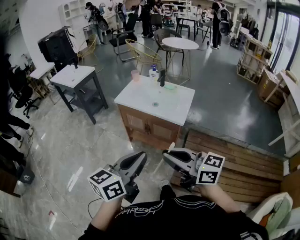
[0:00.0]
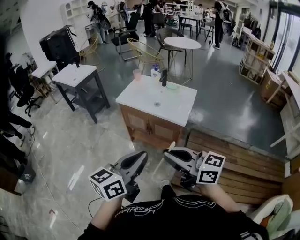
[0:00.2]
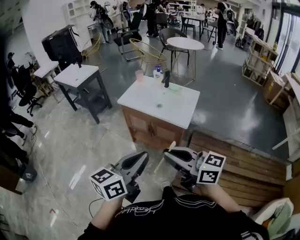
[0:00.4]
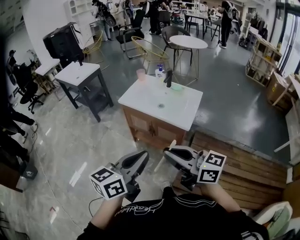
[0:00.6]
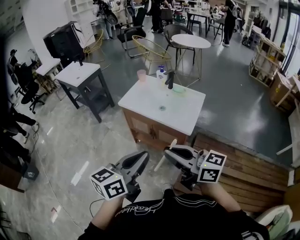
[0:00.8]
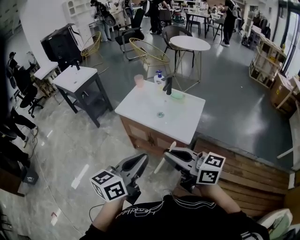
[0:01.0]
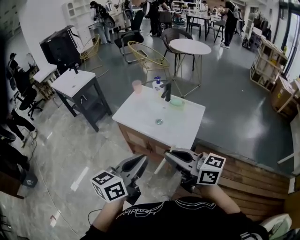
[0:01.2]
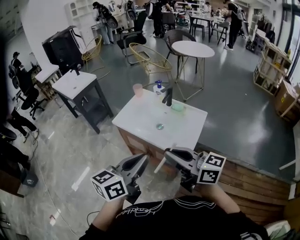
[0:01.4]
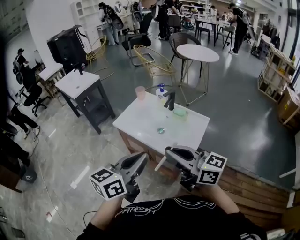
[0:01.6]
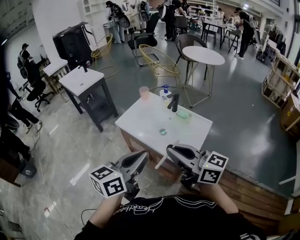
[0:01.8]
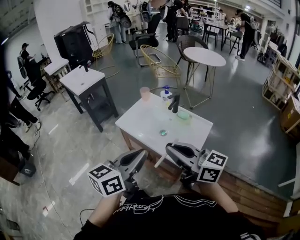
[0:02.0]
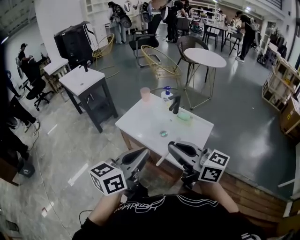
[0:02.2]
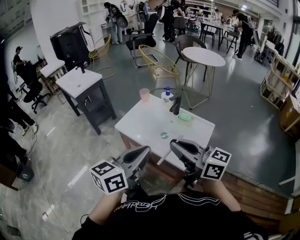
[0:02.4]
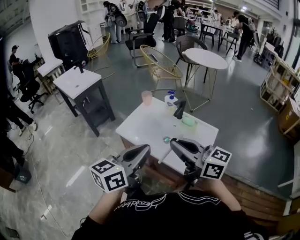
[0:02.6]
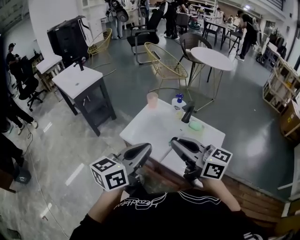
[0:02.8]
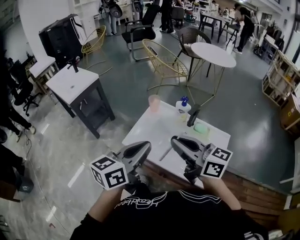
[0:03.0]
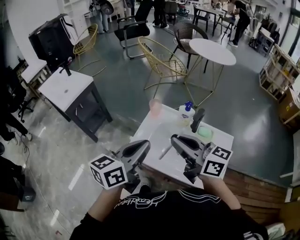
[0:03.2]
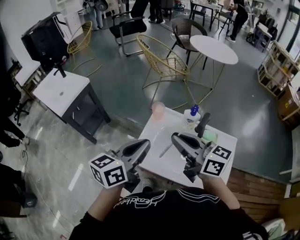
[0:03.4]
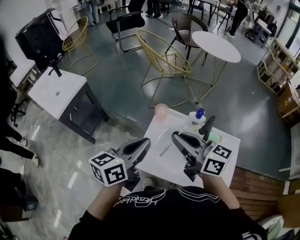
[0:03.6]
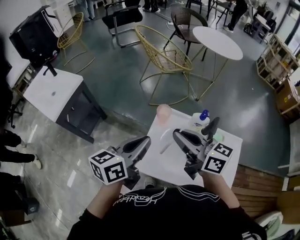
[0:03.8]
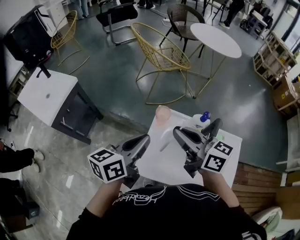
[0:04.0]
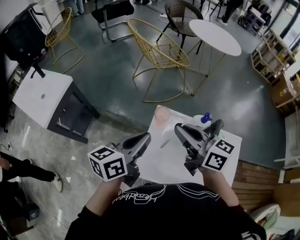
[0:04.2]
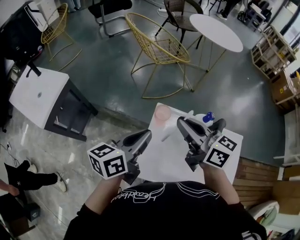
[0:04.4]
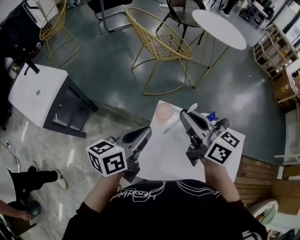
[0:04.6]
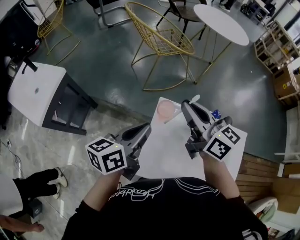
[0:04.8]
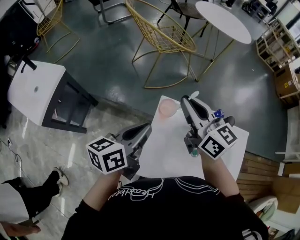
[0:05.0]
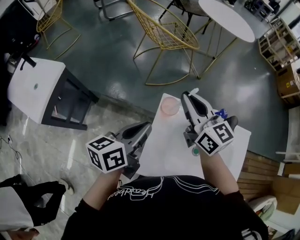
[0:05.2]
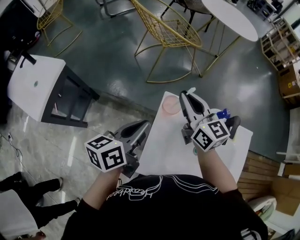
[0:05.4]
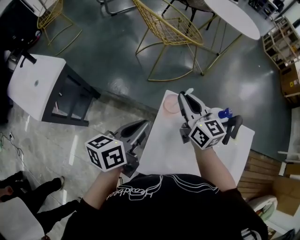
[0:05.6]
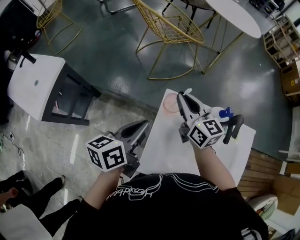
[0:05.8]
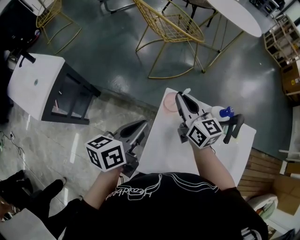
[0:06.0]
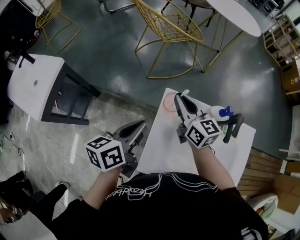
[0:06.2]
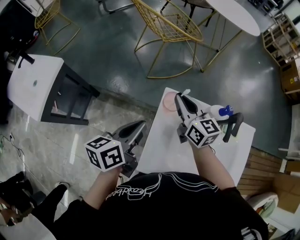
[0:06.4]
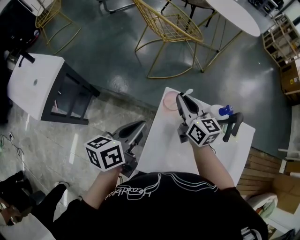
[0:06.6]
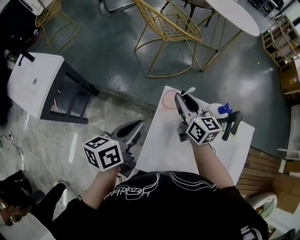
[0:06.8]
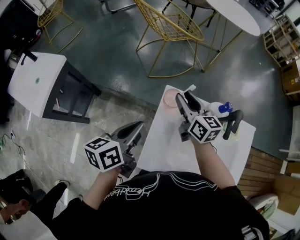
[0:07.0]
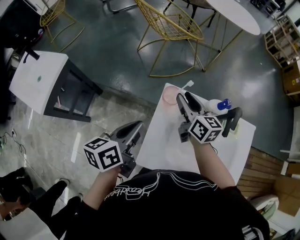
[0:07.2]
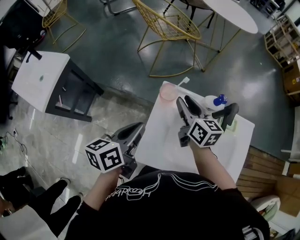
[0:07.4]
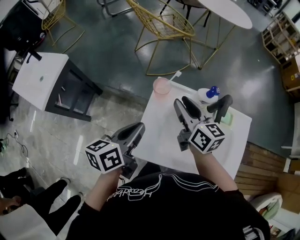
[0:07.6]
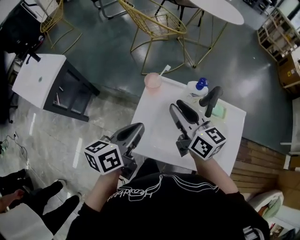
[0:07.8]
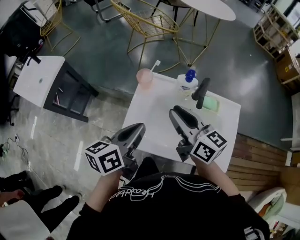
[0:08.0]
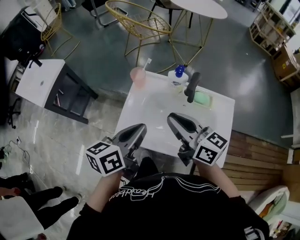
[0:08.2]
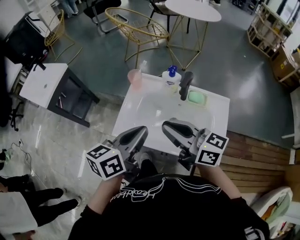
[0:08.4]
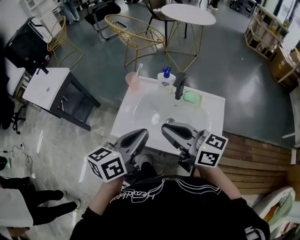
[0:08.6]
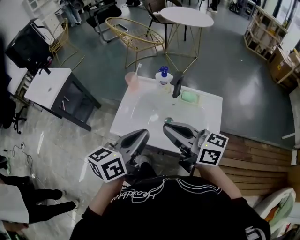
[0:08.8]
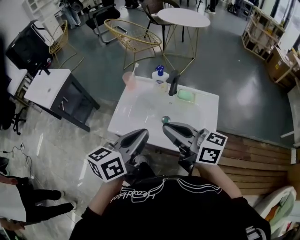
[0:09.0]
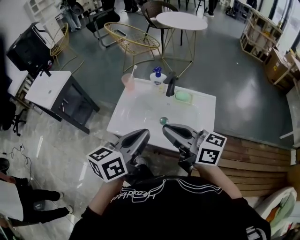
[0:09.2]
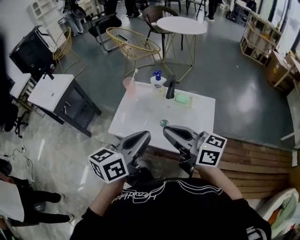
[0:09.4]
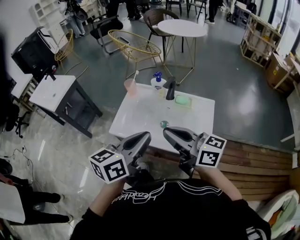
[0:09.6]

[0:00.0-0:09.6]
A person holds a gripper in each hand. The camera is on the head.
0:00.0 to 0:01.6: Both grippers travel together forward, some 25 cm.
0:01.6 to 0:03.2: The grippers both shift forward by approximately 30 cm.
0:03.2 to 0:04.8: The left gripper heads forward and downward, covering roughly 25 cm. Meanwhile the right gripper is displaced forward by some 25 cm, and turns by roughly 20 degrees.
0:04.8 to 0:06.4: The left gripper shifts approximately 5 cm downward. The right gripper heads downward, covering roughly 15 cm.
0:06.4 to 0:08.0: Both grippers move backward, to the right and upward, approximately 20 cm.
0:08.0 to 0:09.6: The left gripper travels backward, to the right and upward by approximately 25 cm; the right gripper moves backward, approximately 25 cm, and swivels some 20 degrees.

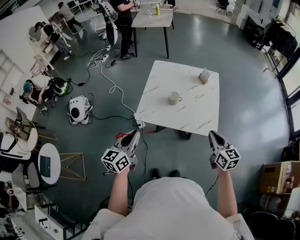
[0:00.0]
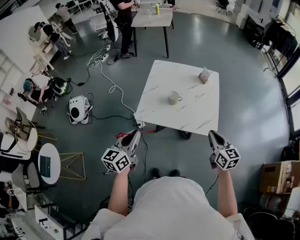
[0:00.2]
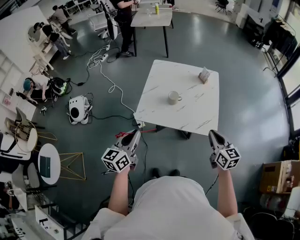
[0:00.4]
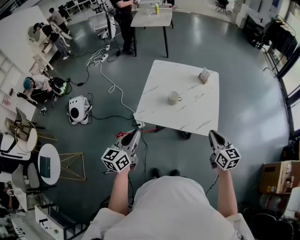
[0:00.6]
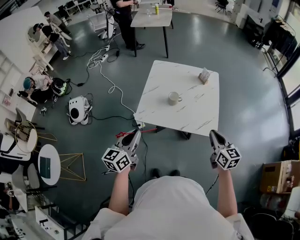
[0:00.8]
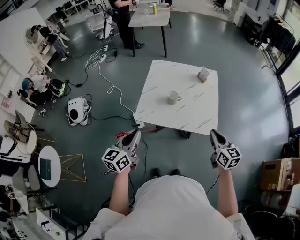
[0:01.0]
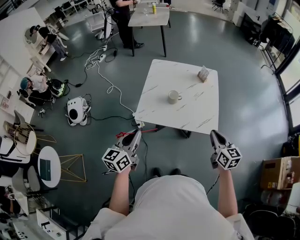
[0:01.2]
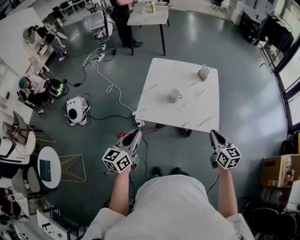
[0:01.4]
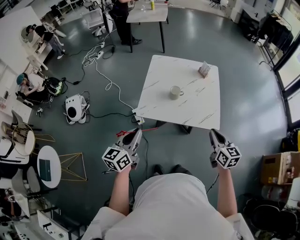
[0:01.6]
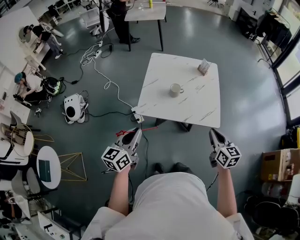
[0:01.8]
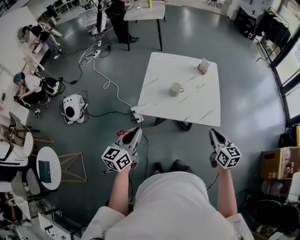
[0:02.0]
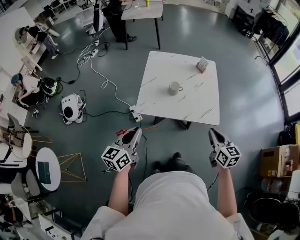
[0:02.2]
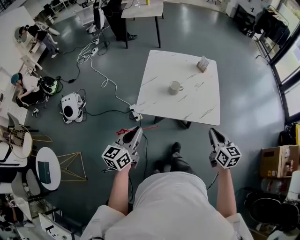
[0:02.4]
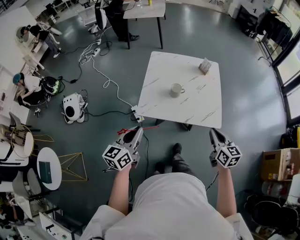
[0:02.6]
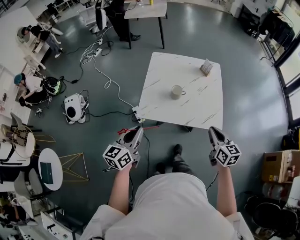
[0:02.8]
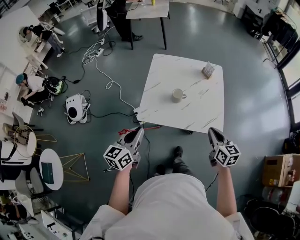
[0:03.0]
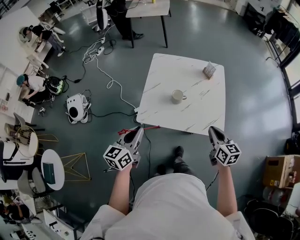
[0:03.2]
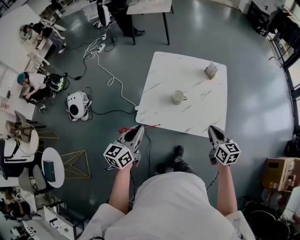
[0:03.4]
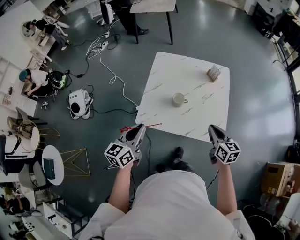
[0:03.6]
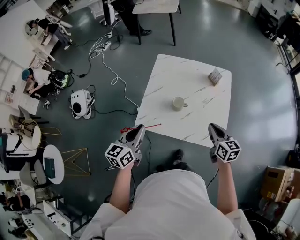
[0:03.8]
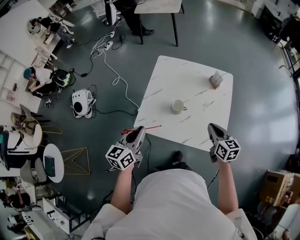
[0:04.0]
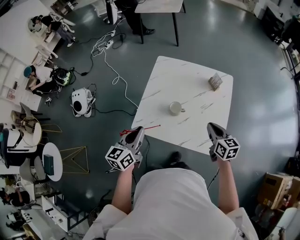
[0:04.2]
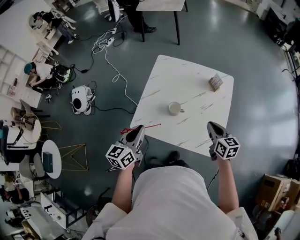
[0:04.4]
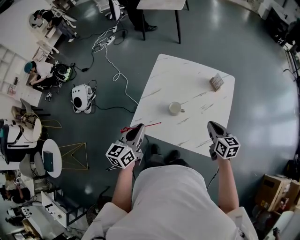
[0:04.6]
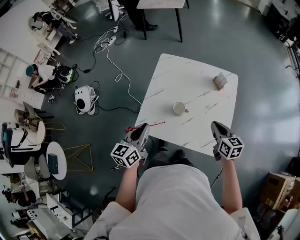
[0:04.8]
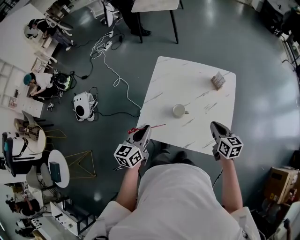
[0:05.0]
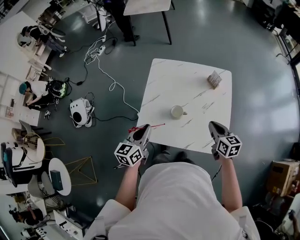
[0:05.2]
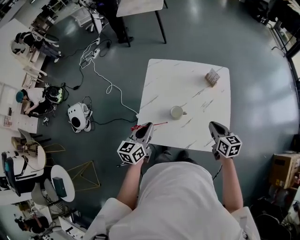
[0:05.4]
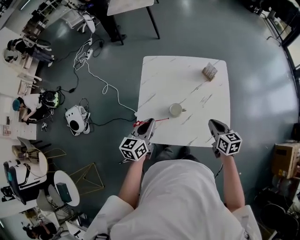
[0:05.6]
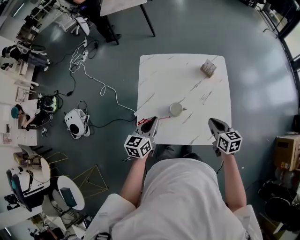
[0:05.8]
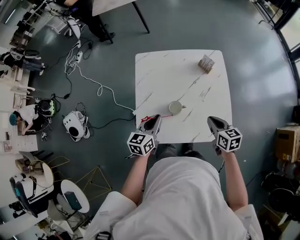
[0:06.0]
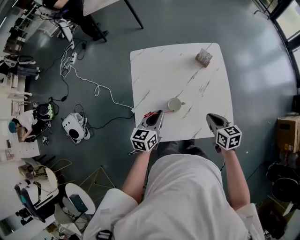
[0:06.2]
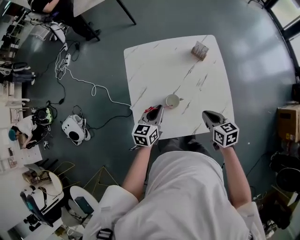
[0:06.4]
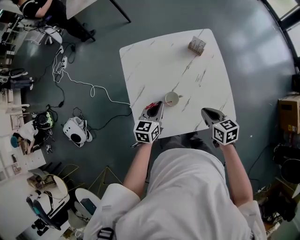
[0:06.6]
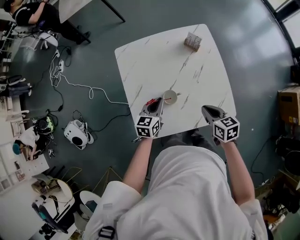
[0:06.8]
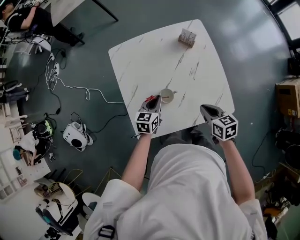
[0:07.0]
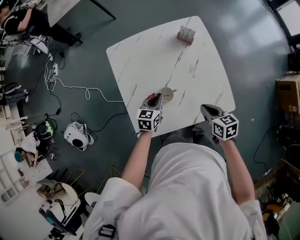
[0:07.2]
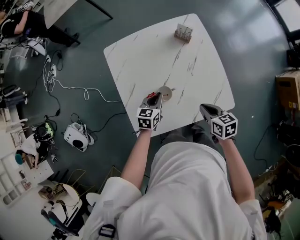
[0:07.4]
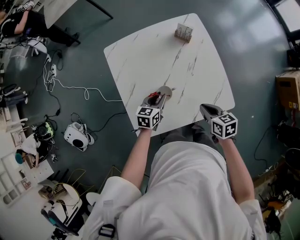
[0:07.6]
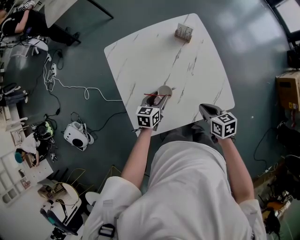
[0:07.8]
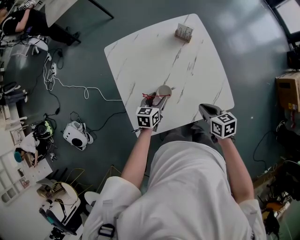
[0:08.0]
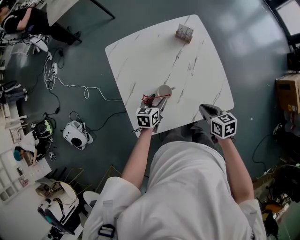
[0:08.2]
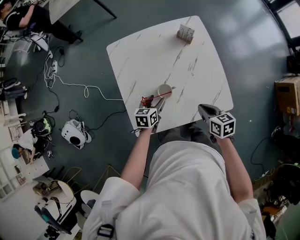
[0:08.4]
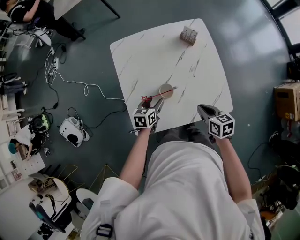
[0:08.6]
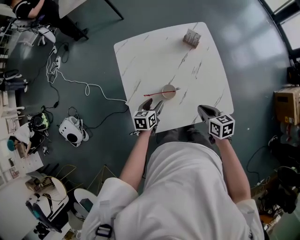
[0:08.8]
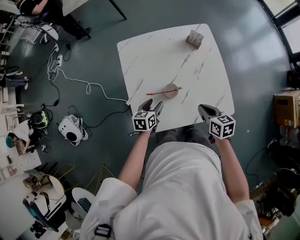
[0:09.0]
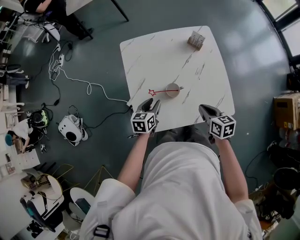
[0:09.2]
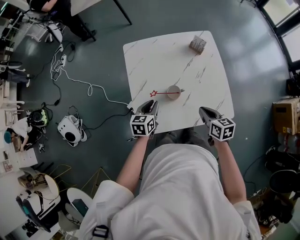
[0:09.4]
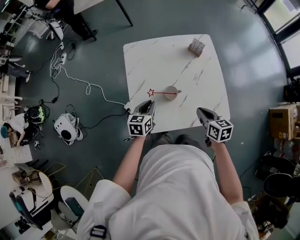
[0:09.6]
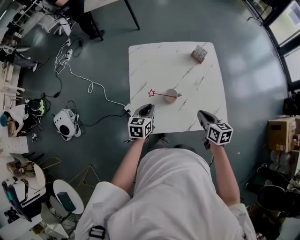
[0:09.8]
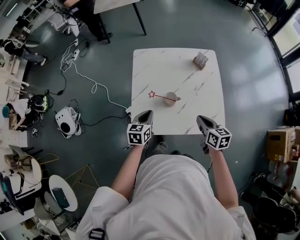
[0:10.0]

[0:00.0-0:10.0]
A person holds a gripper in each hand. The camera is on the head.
0:00.0 to 0:01.4: The grippers move only a little.
0:01.4 to 0:02.8: The grippers make only small movements.
0:02.8 to 0:04.2: The right gripper travels forward by roughly 20 cm. Meanwhile the left gripper moves forward and to the right, about 20 cm.
0:04.2 to 0:05.8: The left gripper heads forward and downward, covering about 15 cm. The right gripper changes place by roughly 5 cm.
0:05.8 to 0:07.2: The left gripper travels downward, forward and to the right by some 20 cm, and changes its angle by approximately 30 degrees. The right gripper shifts about 5 cm downward.
0:07.2 to 0:08.6: The left gripper changes place by approximately 5 cm, and opens.
0:08.6 to 0:10.0: The right gripper is displaced upward by roughly 5 cm. The left gripper heads upward and backward, covering approximately 15 cm, and closes.

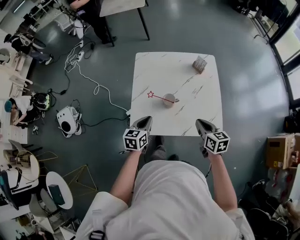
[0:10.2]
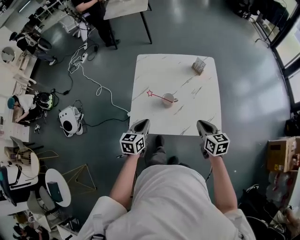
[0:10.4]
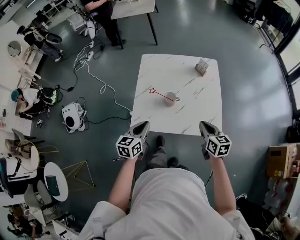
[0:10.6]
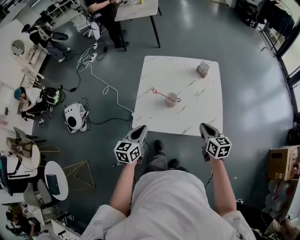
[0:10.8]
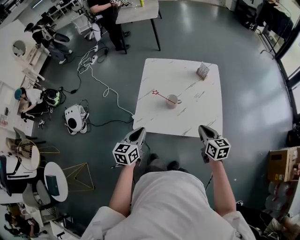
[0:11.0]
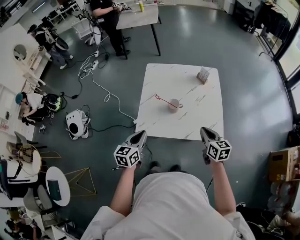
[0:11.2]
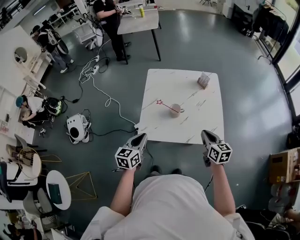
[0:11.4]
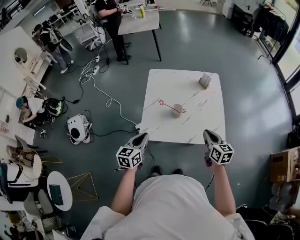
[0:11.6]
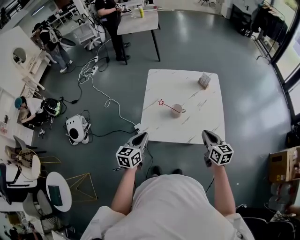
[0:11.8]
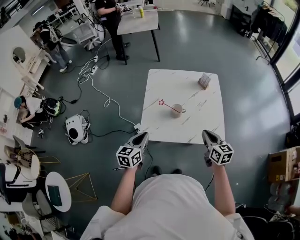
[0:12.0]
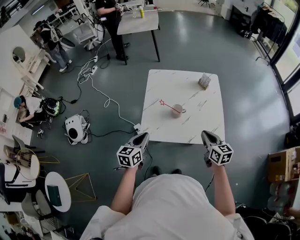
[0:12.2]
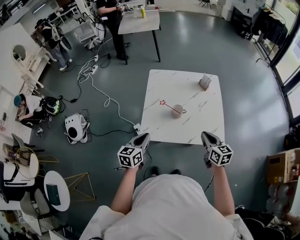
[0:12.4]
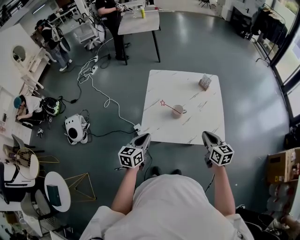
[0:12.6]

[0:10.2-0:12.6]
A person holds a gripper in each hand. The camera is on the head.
0:10.2 to 0:11.4: The right gripper heads backward, covering roughly 5 cm. The left gripper heads backward, upward and to the left, covering roughly 15 cm.
0:11.4 to 0:12.6: The grippers stay close to where they were, moving slightly.

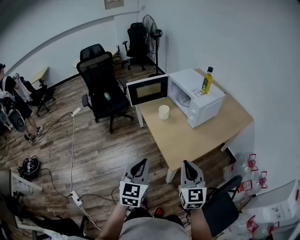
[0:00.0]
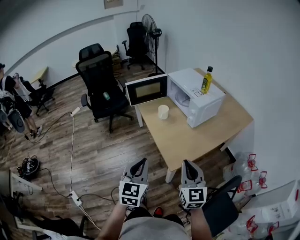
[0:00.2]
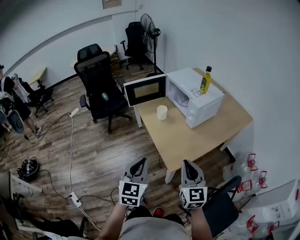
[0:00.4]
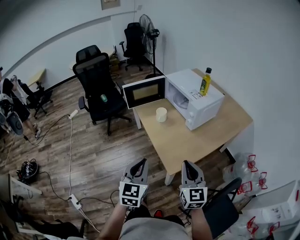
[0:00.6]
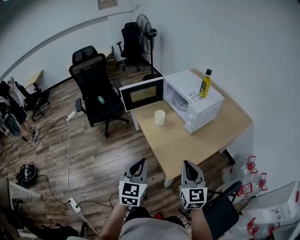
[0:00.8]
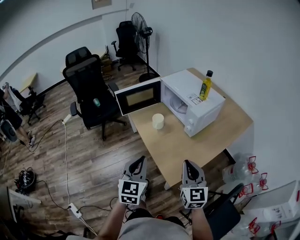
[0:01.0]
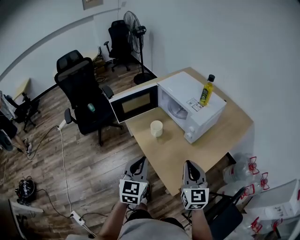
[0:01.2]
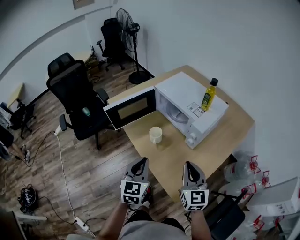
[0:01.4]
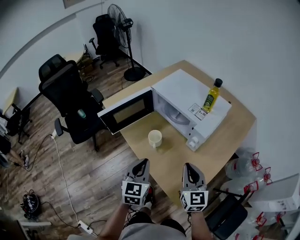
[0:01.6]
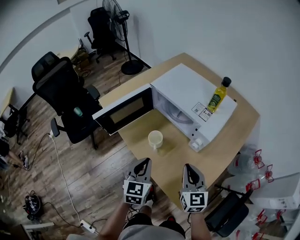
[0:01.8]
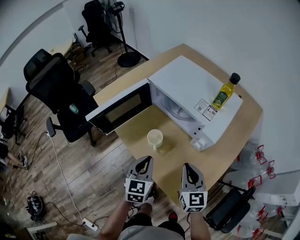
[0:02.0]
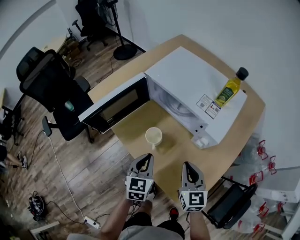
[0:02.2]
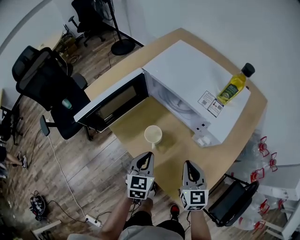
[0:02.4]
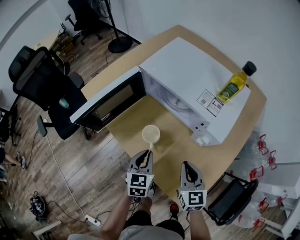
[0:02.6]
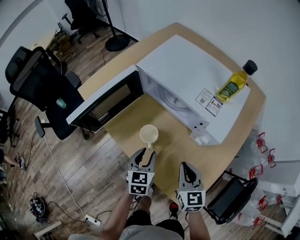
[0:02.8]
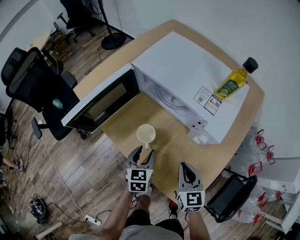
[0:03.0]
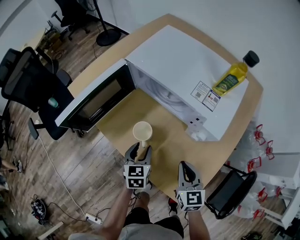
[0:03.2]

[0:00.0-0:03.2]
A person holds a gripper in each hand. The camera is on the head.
0:00.0 to 0:01.6: Both grippers move forward, about 30 cm.
0:01.6 to 0:03.2: The right gripper travels downward by some 15 cm. Meanwhile the left gripper heads downward and forward, covering roughly 25 cm, rotates about 20 degrees, and opens.
